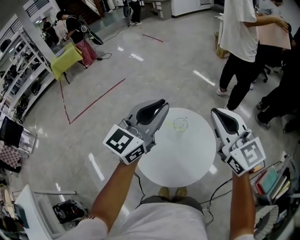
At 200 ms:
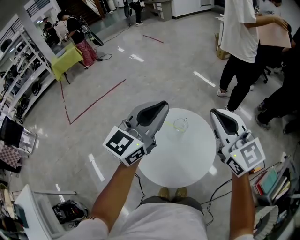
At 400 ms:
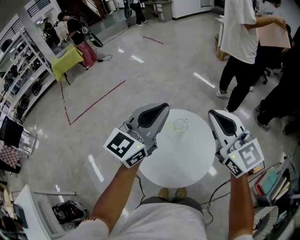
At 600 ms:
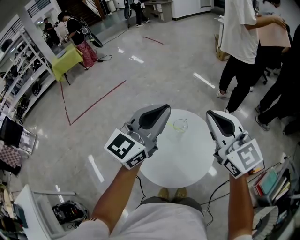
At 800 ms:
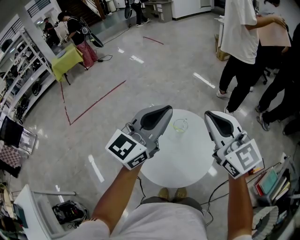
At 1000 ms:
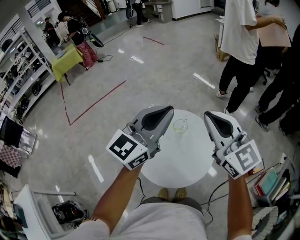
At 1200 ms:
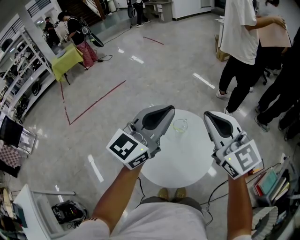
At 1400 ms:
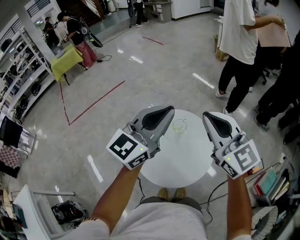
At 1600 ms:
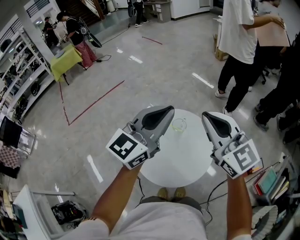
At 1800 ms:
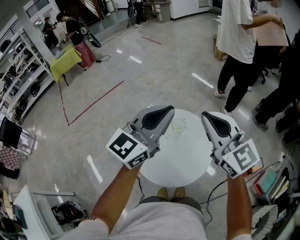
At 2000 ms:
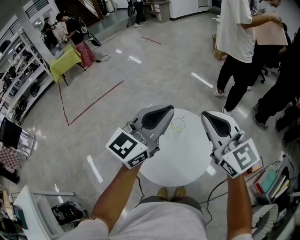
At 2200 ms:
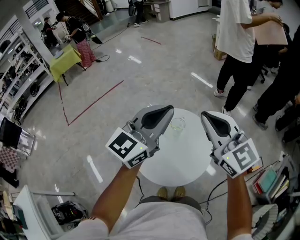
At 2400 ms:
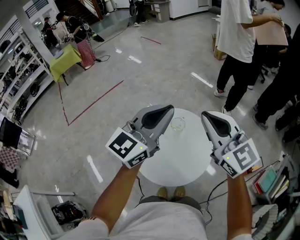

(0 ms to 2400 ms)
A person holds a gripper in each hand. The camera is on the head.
0 ms - 2400 ms: The grippers stay close to where they were, moving slightly.

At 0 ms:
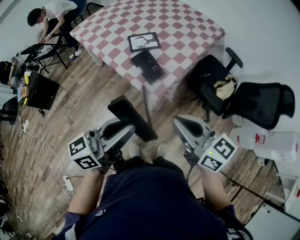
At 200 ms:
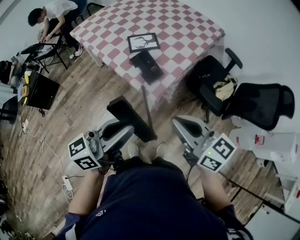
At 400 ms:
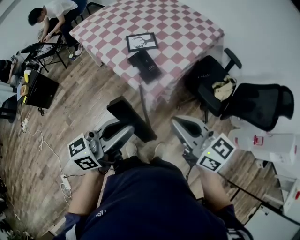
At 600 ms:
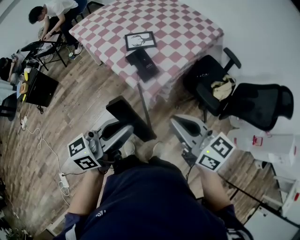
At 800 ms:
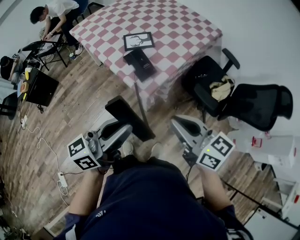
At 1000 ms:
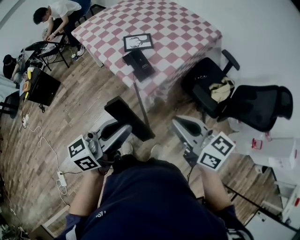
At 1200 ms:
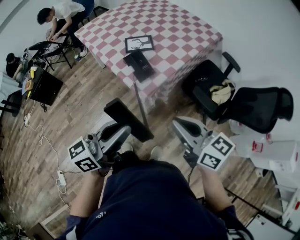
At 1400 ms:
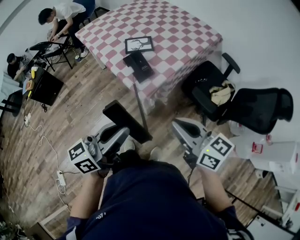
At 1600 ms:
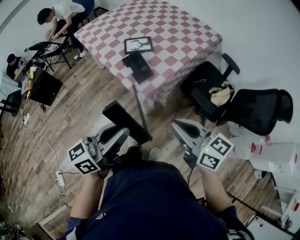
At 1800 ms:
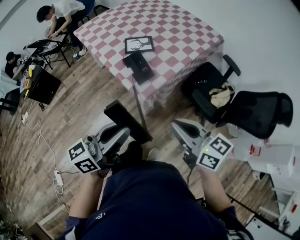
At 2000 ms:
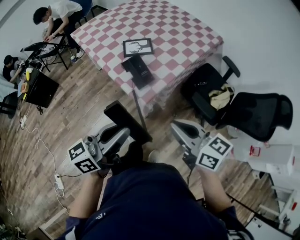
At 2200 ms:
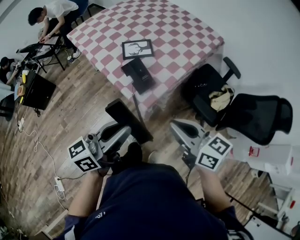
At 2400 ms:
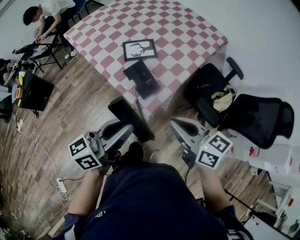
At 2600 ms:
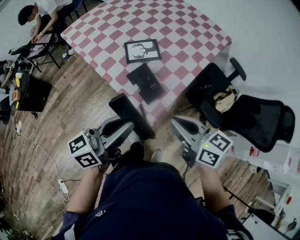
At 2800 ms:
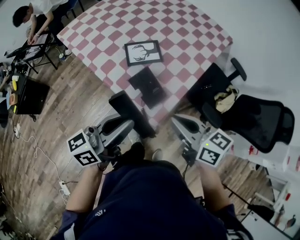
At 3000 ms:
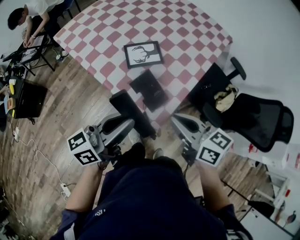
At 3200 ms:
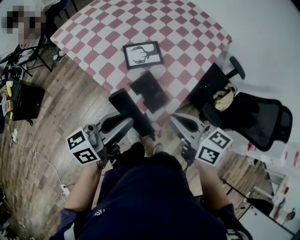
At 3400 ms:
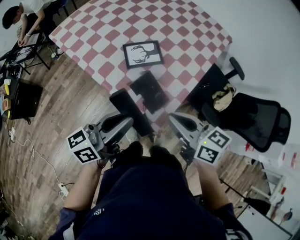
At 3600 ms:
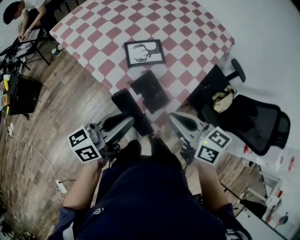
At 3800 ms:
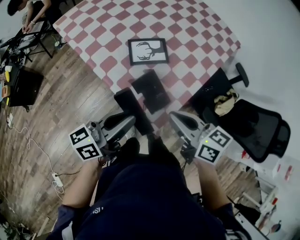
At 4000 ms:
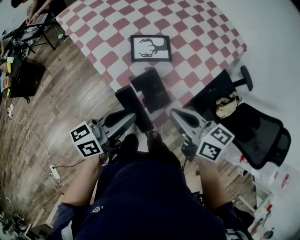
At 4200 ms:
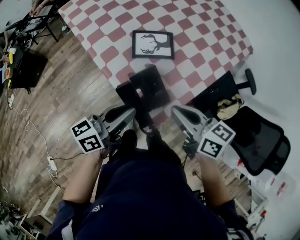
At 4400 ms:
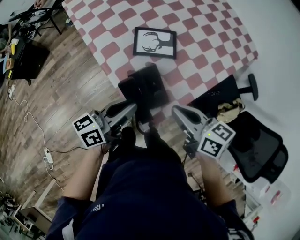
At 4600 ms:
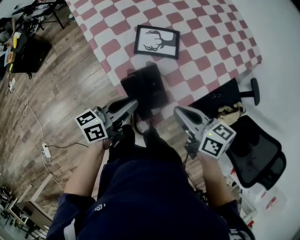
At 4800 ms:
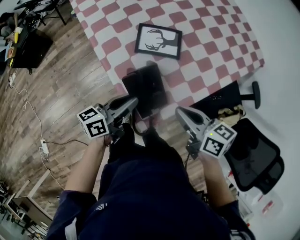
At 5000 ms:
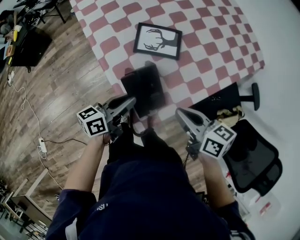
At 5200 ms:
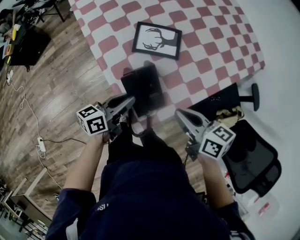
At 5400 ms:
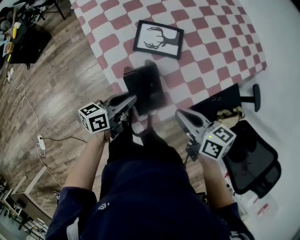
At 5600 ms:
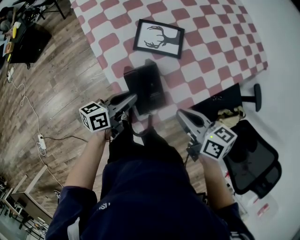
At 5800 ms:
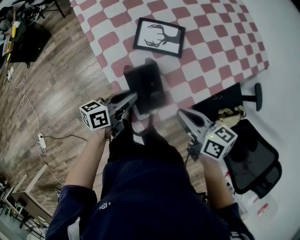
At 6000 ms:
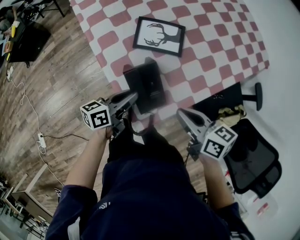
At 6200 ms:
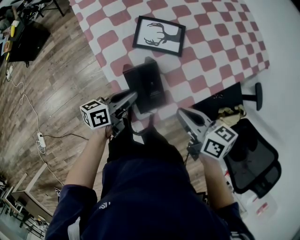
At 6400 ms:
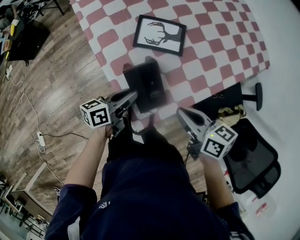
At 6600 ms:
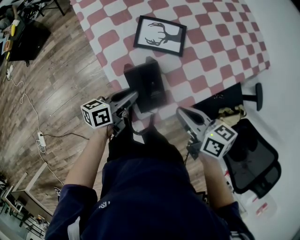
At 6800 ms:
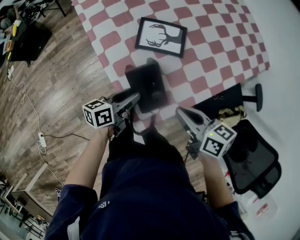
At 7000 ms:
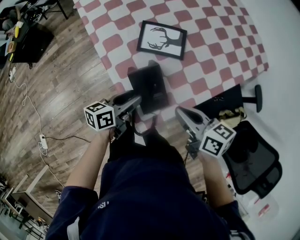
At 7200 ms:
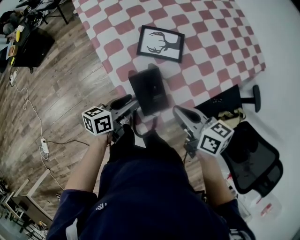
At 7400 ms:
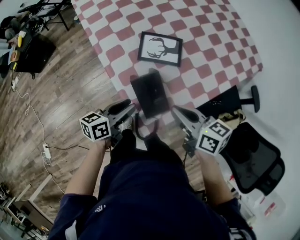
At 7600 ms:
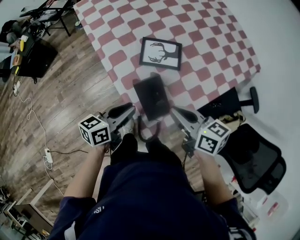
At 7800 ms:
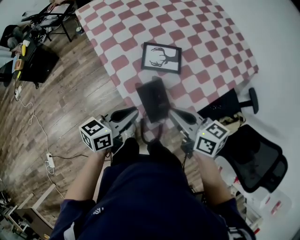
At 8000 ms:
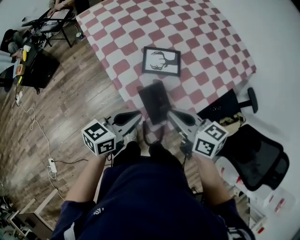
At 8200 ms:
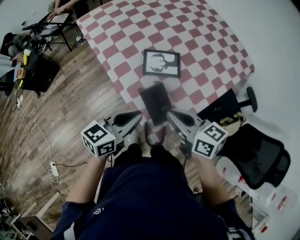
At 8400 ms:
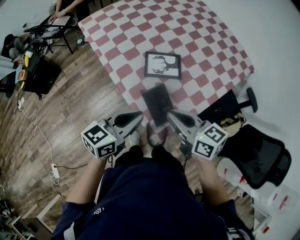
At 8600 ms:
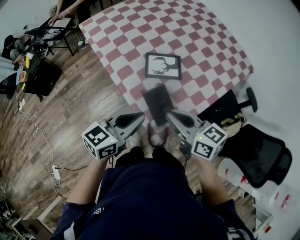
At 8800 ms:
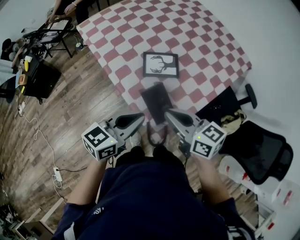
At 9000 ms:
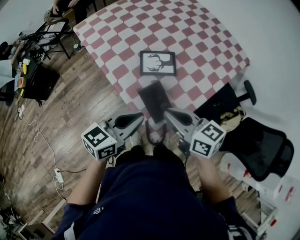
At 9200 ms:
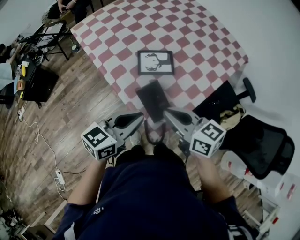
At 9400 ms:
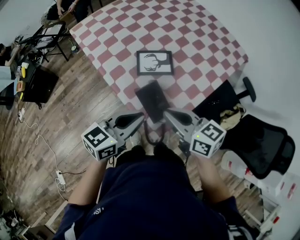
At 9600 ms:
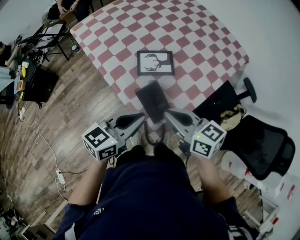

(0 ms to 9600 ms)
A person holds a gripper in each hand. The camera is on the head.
0 ms - 1600 ms: The grippers both shift to the right by some 10 cm.
1600 ms - 3200 ms: The right gripper moves forward and to the left, approximately 30 cm. The left gripper shifts approximately 30 cm forward.
3200 ms - 4800 ms: The right gripper shifts about 15 cm downward, forward and to the right, and changes its angle by approximately 20 degrees. The left gripper travels downward by about 15 cm, and swivels approximately 30 degrees.
4800 ms - 6400 ms: The left gripper moves downward, approximately 10 cm.
6400 ms - 8000 ms: The right gripper goes some 10 cm upward and to the left. The left gripper travels upward by roughly 15 cm, turns by roughly 30 degrees, and opens, then closes once more.
8000 ms - 9600 ms: The left gripper heads upward, covering approximately 5 cm.

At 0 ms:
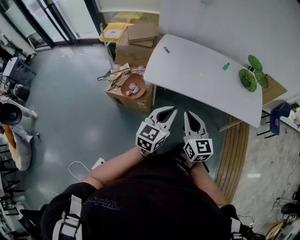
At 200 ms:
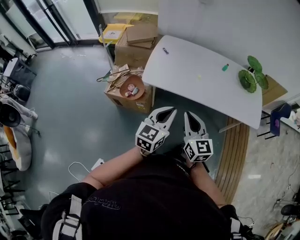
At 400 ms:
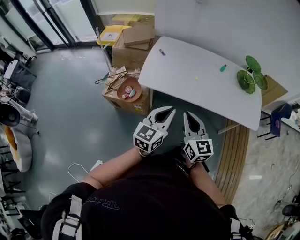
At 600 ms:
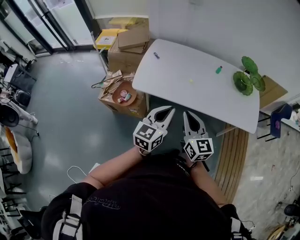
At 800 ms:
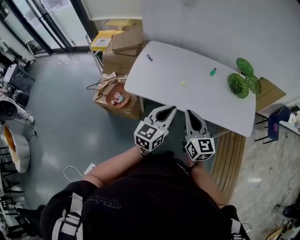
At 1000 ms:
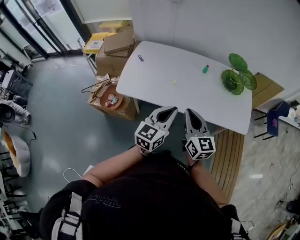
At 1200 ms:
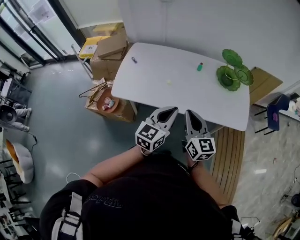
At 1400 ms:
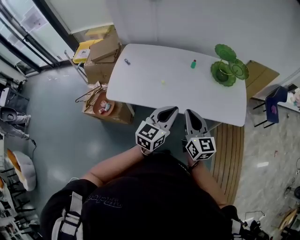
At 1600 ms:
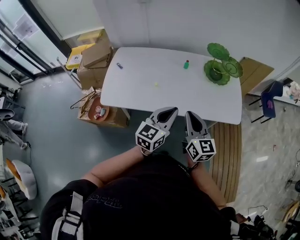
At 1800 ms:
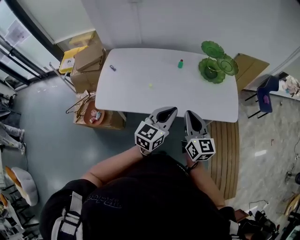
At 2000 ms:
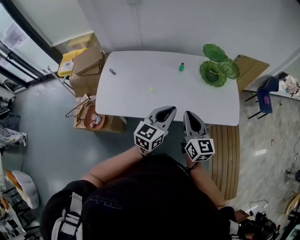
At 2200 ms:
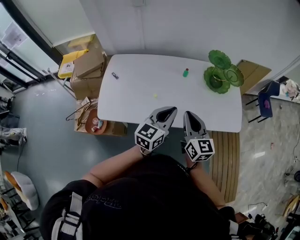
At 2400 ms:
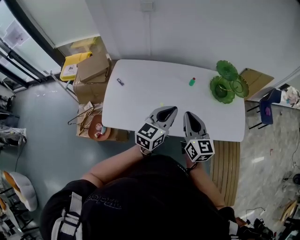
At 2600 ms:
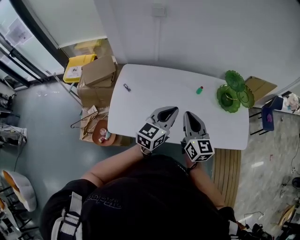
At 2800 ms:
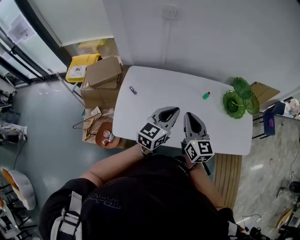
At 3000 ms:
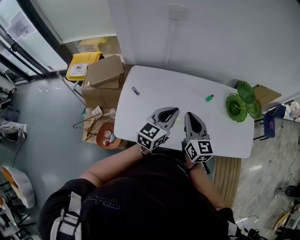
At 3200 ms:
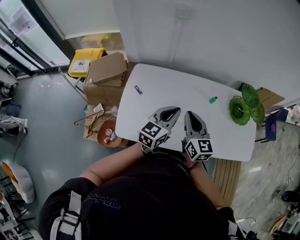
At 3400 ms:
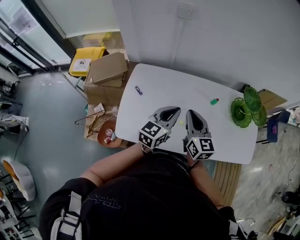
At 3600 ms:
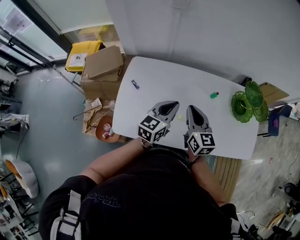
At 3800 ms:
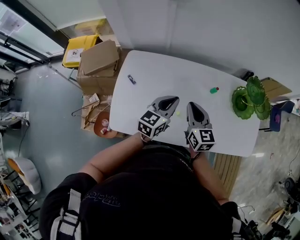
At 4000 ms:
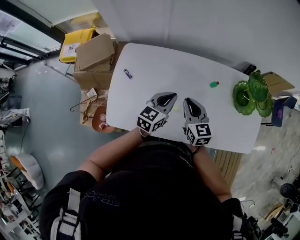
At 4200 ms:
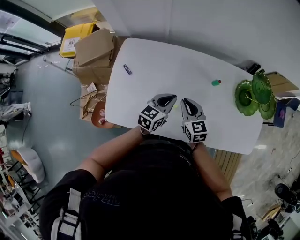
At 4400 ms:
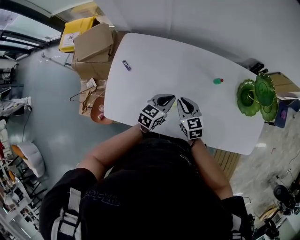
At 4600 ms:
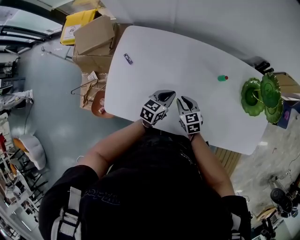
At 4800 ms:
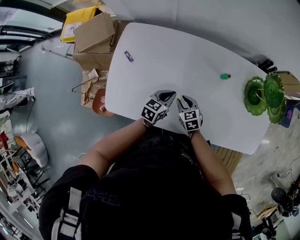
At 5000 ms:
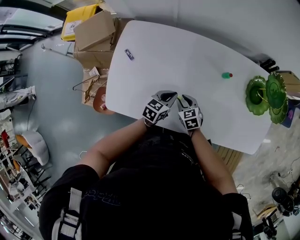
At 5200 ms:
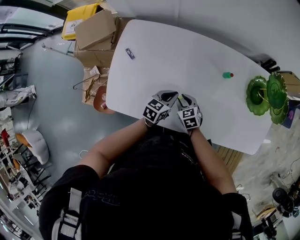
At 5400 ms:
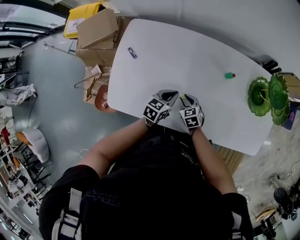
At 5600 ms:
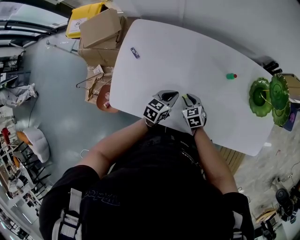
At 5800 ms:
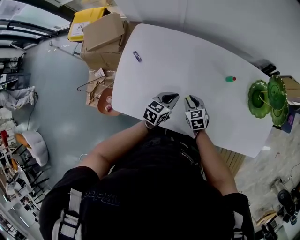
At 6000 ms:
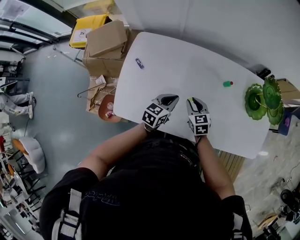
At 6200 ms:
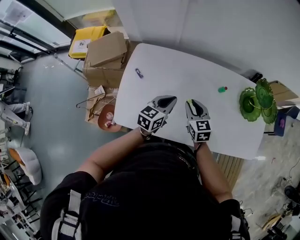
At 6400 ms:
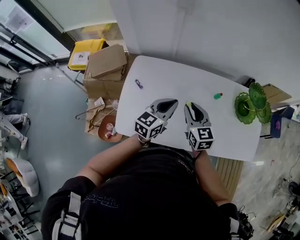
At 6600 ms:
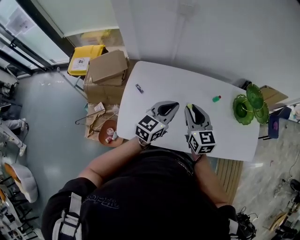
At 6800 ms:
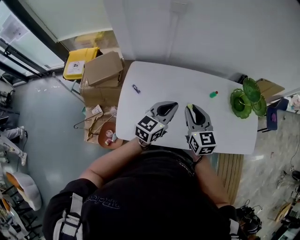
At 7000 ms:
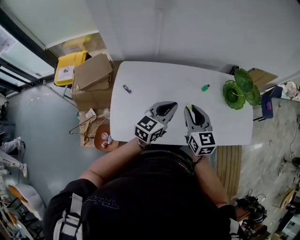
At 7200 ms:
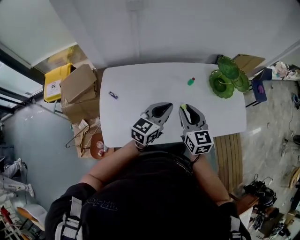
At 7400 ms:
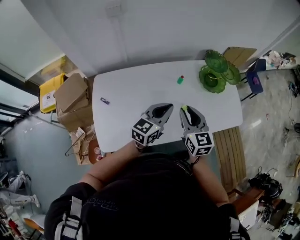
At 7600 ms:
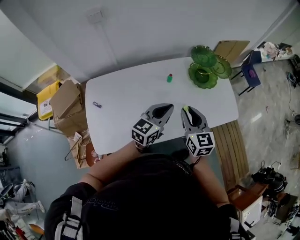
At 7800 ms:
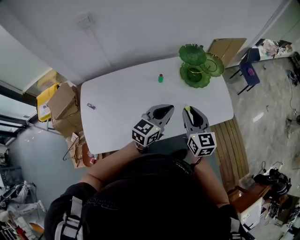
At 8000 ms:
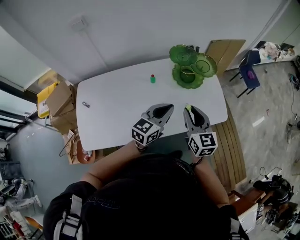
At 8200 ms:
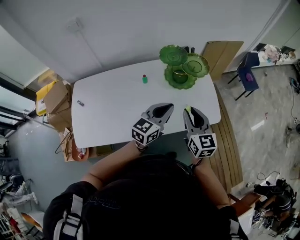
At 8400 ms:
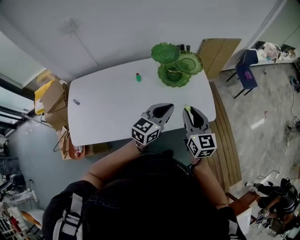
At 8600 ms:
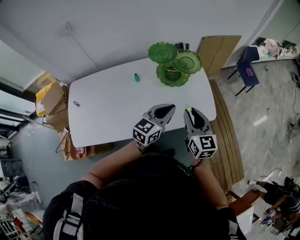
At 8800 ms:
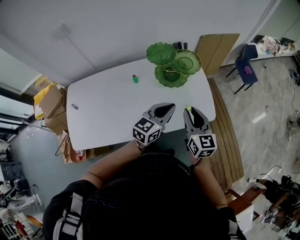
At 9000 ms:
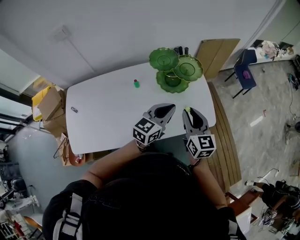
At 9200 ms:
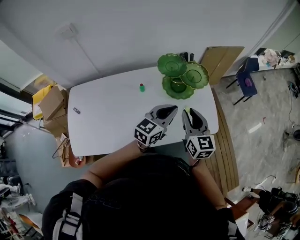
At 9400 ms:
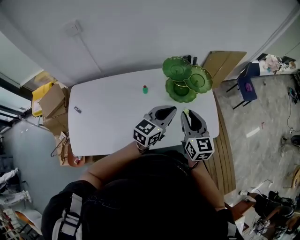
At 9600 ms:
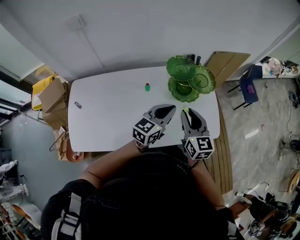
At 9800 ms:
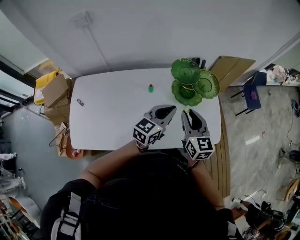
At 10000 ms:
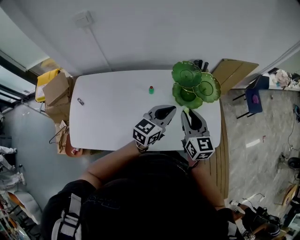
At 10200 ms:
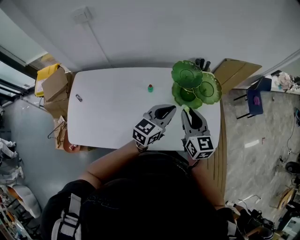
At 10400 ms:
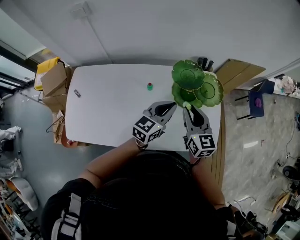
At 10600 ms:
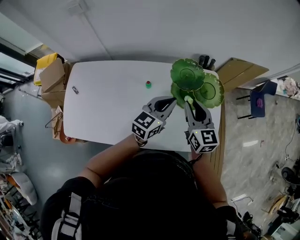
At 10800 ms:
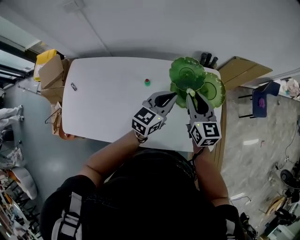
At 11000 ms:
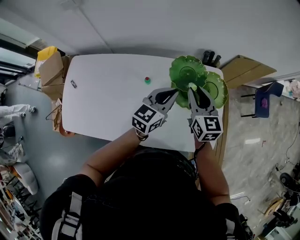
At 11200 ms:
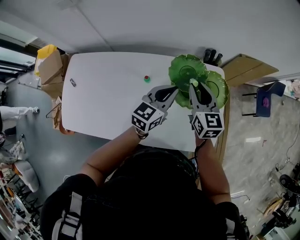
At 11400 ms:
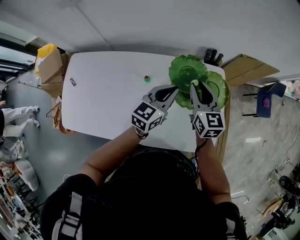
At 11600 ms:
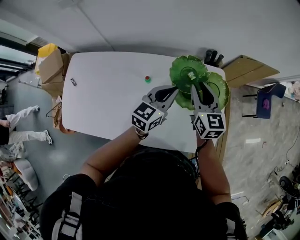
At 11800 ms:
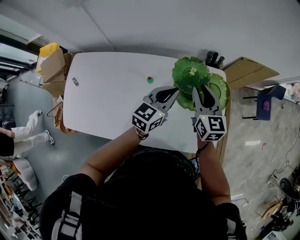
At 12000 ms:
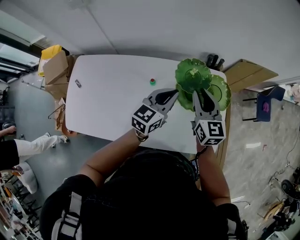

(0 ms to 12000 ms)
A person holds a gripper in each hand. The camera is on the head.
0 ms - 1600 ms: The grippers both shift to the right and forward by roughly 35 cm.
1600 ms - 3000 ms: The two grippers go about 30 cm to the left and forward.
3000 ms - 4400 ms: The right gripper goes roughly 25 cm downward, and turns by some 30 degrees, while the left gripper travels downward and forward by roughly 25 cm, and turns by about 20 degrees.
4400 ms - 6000 ms: The right gripper reaches roughly 15 cm downward, then returns. Meanwhile the left gripper goes downward and returns, approximately 10 cm each way.
6000 ms - 7600 ms: The two grippers go about 20 cm upward. The right gripper changes its angle by some 40 degrees; the left gripper rotates some 30 degrees.
7600 ms - 9000 ms: Both grippers travel together to the right and forward, some 25 cm.
9000 ms - 10400 ms: The two grippers go some 15 cm forward and to the left.
10400 ms - 12000 ms: The grippers both shift forward by roughly 10 cm.
